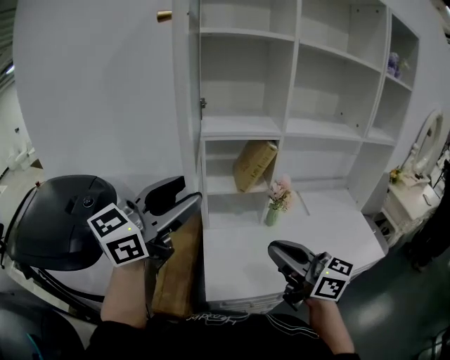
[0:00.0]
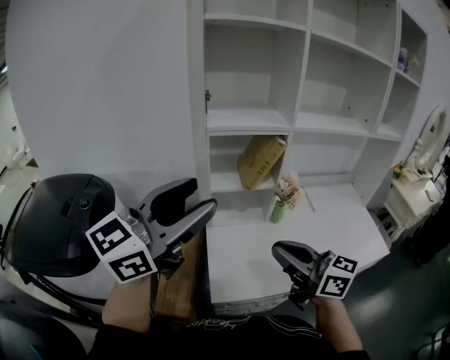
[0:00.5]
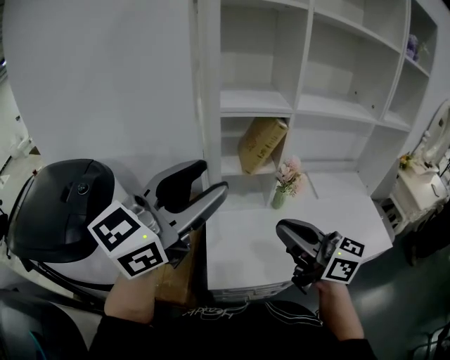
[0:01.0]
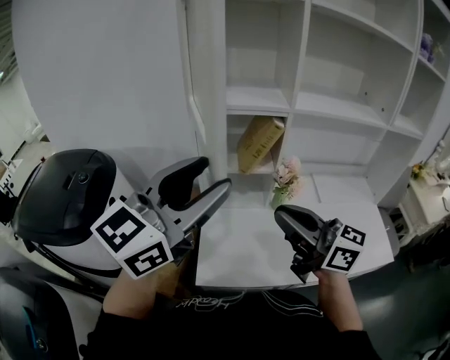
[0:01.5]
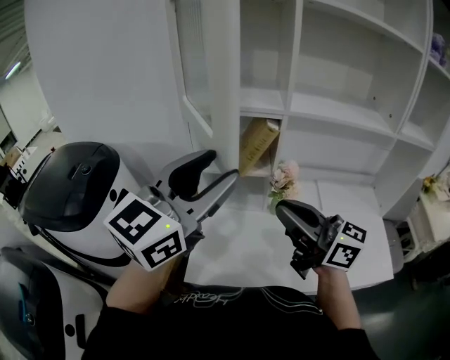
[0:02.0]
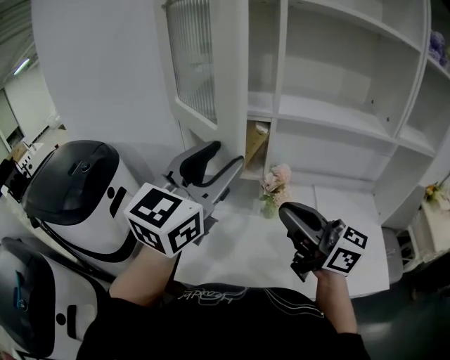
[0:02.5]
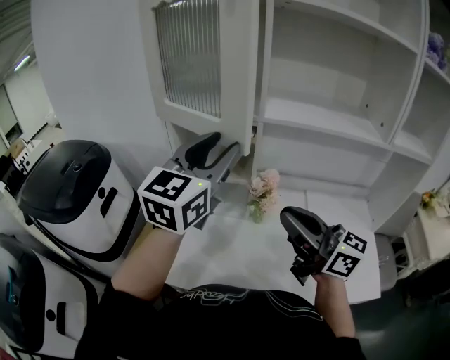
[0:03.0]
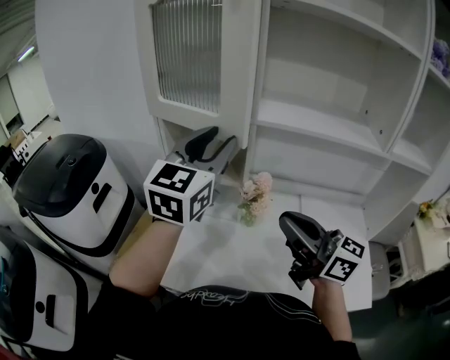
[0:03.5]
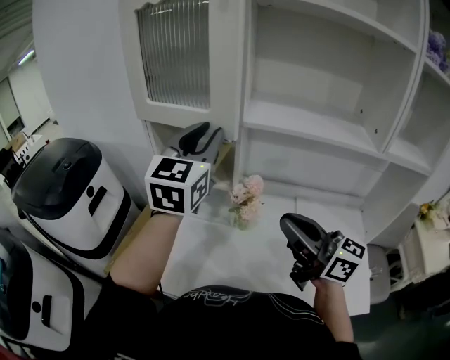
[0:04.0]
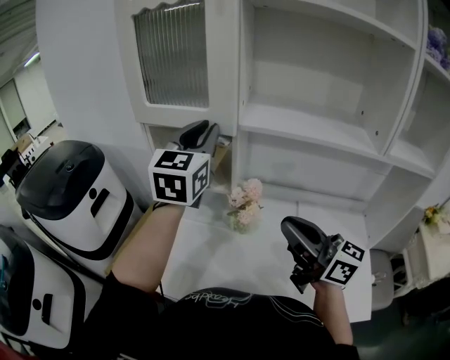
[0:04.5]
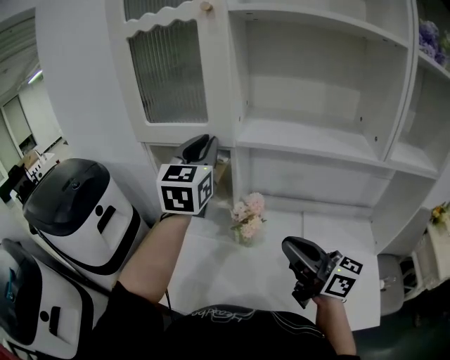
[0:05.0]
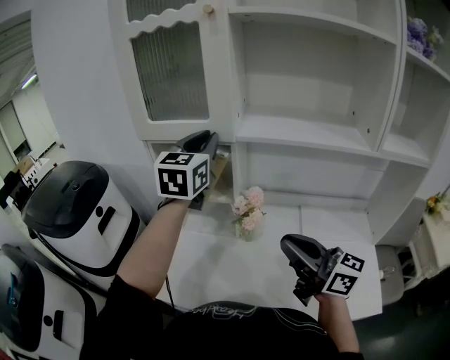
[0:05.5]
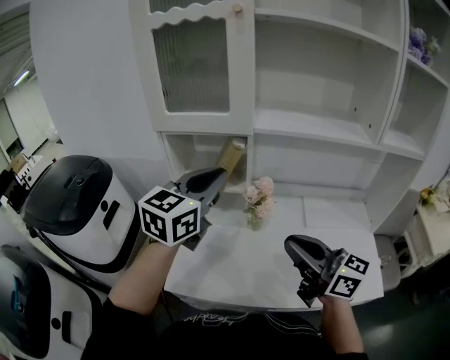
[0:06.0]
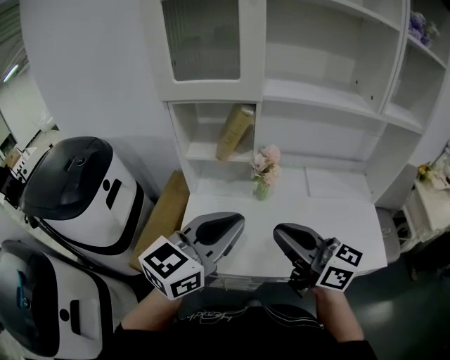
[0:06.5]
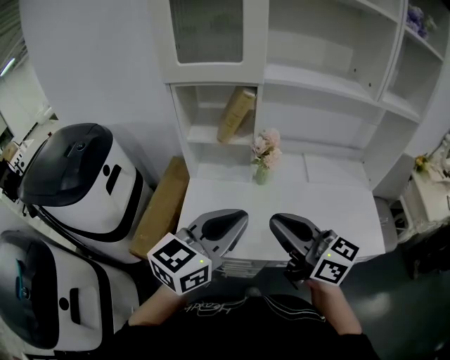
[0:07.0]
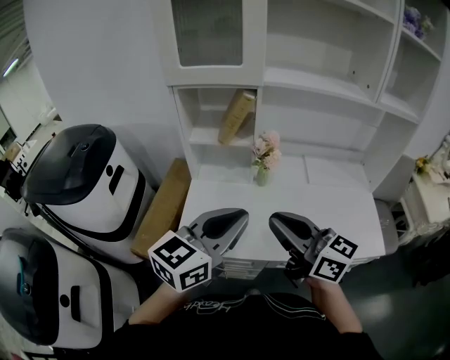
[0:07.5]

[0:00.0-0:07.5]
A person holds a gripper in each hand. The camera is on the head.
0.0 to 2.0 s: The left gripper heads to the right, covering roughly 15 cm, and rotates about 20 degrees. Meanwhile the right gripper shifts about 15 cm to the right and forward.
2.0 to 4.0 s: The right gripper moves to the right, about 20 cm. Meanwhile the left gripper is displaced to the right and forward by approximately 20 cm, changes its angle by some 30 degrees, and closes its fingers.
4.0 to 5.5 s: The grippers stay close to where they were, moving slightly.
5.5 to 7.5 s: The left gripper goes about 35 cm backward, and swivels approximately 40 degrees; the right gripper is displaced to the left and backward by roughly 20 cm.

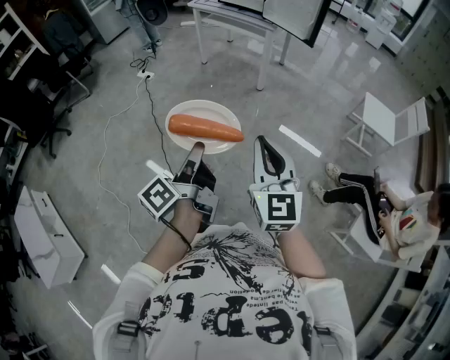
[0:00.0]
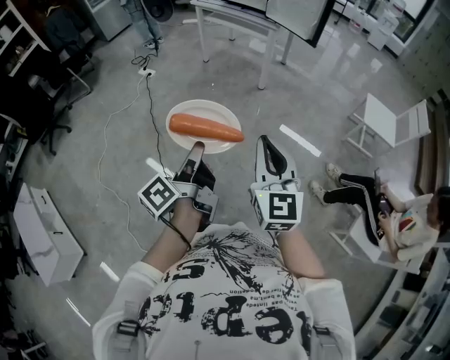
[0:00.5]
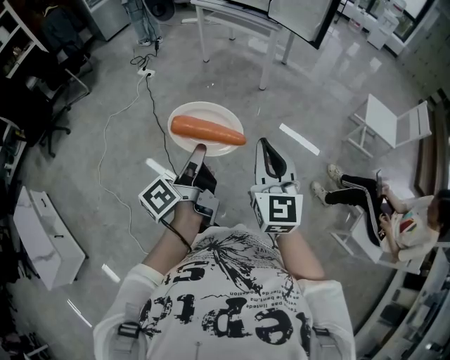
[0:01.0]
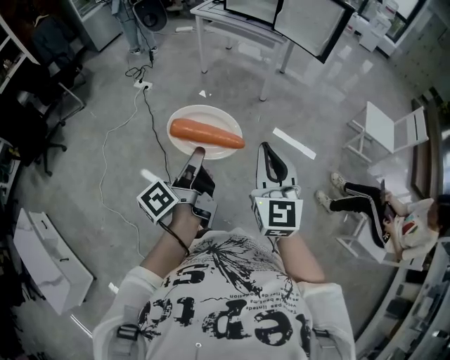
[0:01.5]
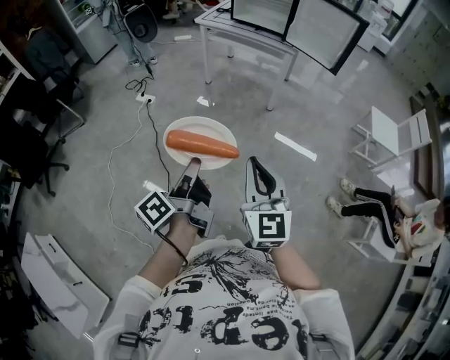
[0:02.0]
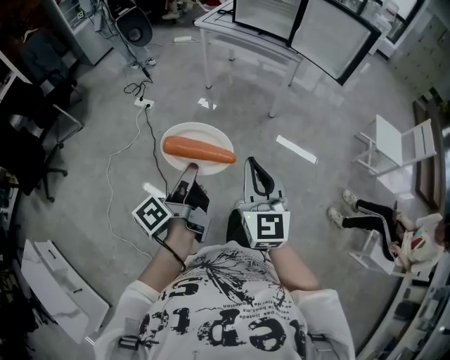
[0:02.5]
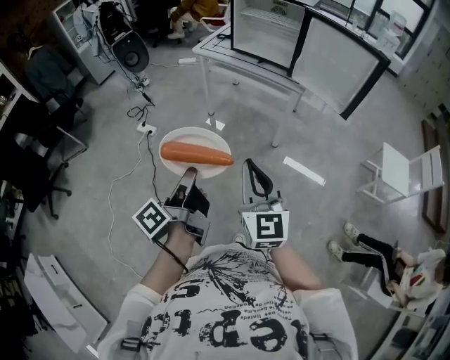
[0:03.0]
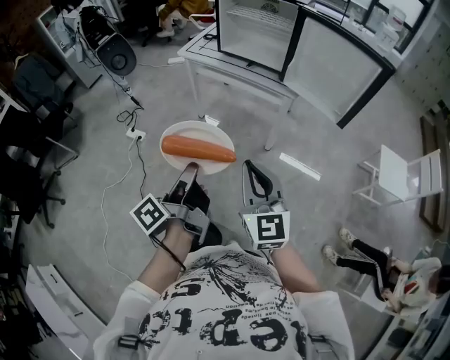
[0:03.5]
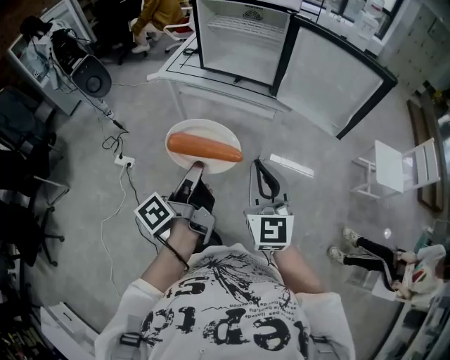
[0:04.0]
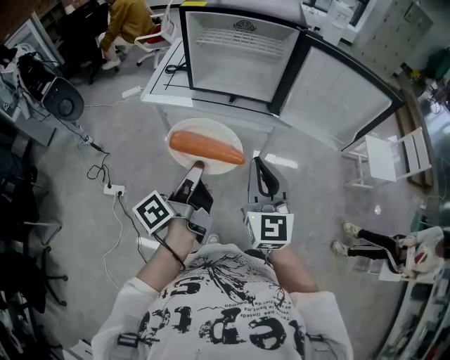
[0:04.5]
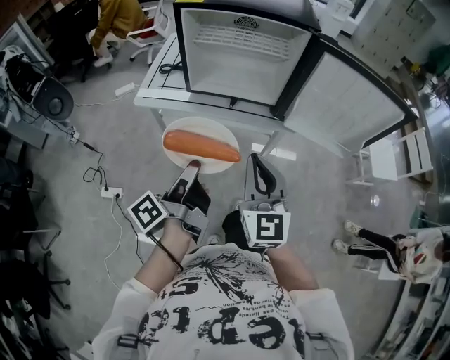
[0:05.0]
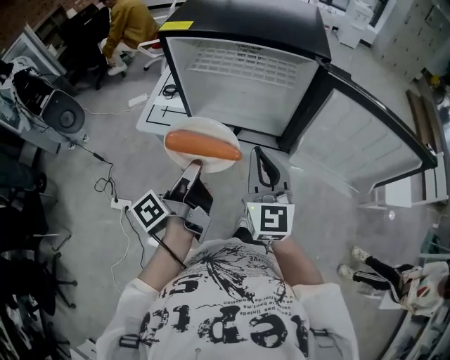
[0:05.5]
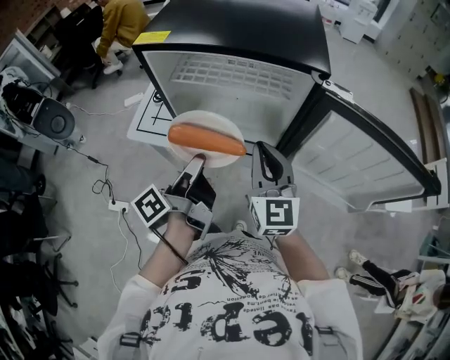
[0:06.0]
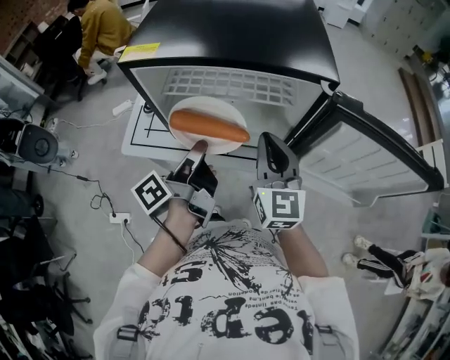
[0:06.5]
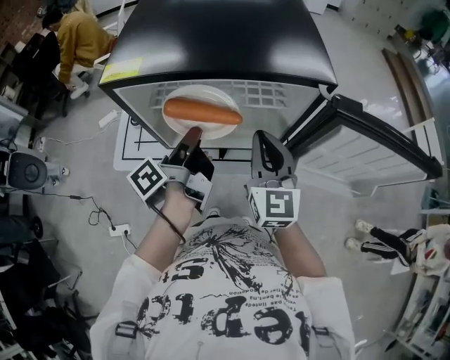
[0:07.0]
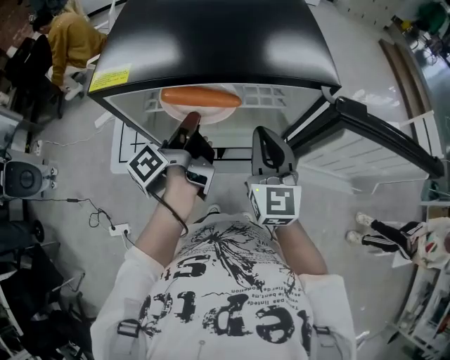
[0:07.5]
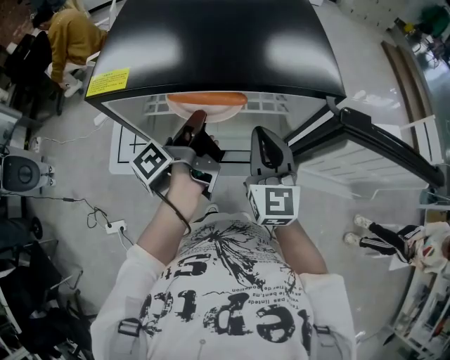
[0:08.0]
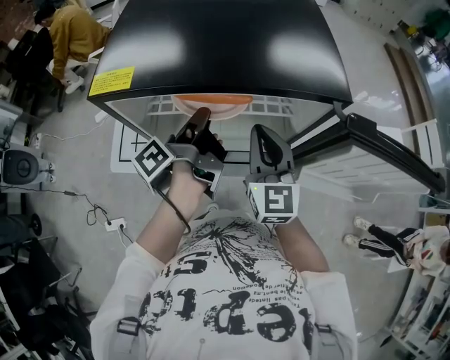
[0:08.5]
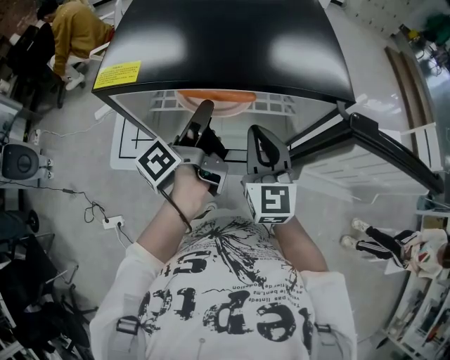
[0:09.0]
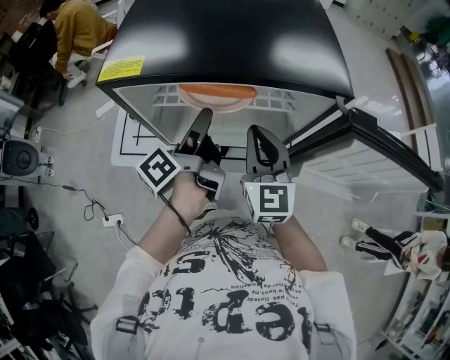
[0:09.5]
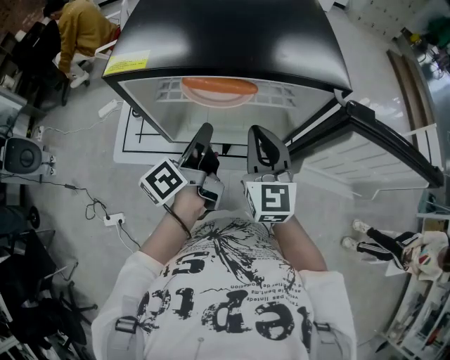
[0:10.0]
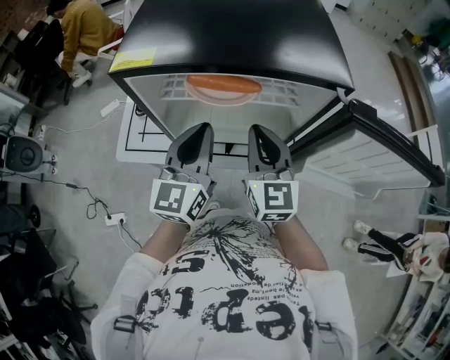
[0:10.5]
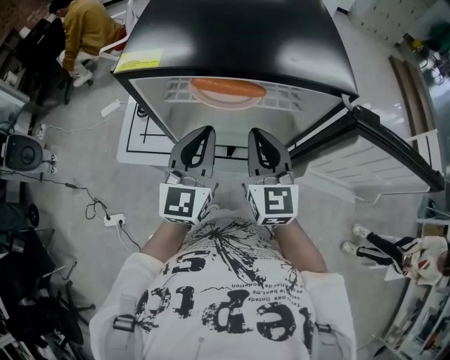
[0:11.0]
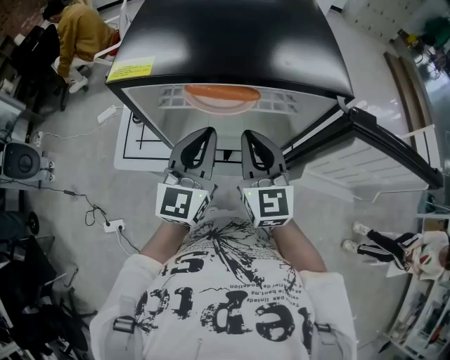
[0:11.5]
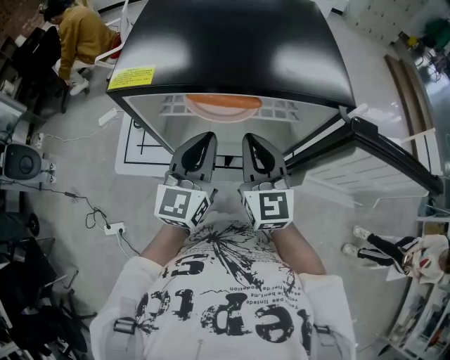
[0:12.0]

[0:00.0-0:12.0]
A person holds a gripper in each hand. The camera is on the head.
0.0 to 2.0 s: The right gripper moves some 30 cm.
2.0 to 4.0 s: The right gripper ends up roughly 50 cm from where it was.
4.0 to 6.0 s: The right gripper ends up approximately 40 cm from where it was.
6.0 to 8.0 s: The right gripper changes place by roughly 10 cm.

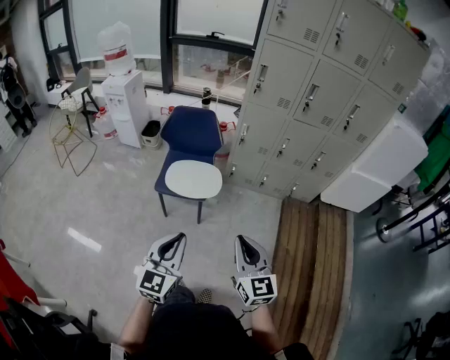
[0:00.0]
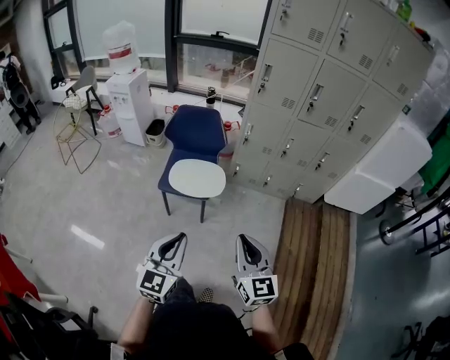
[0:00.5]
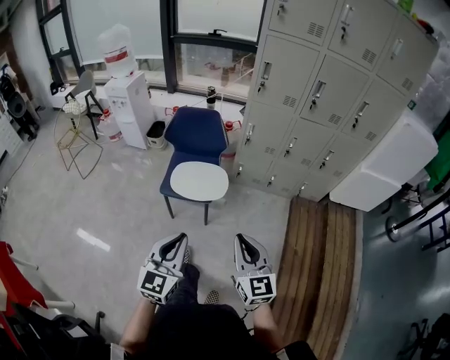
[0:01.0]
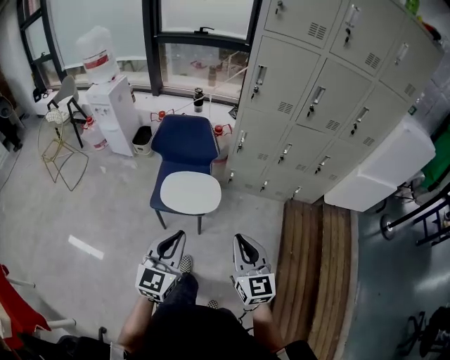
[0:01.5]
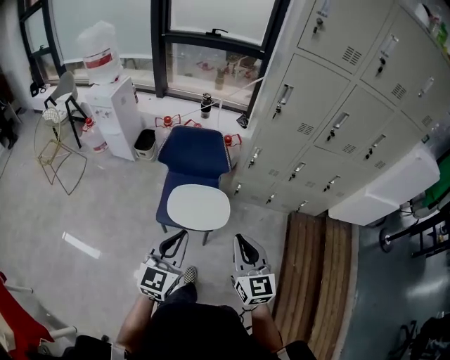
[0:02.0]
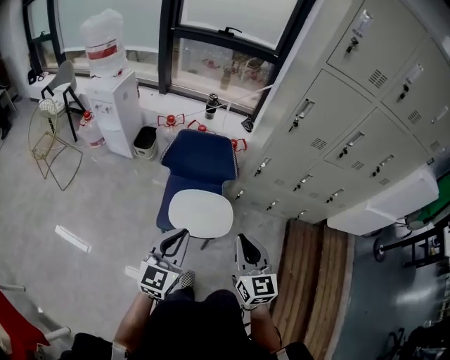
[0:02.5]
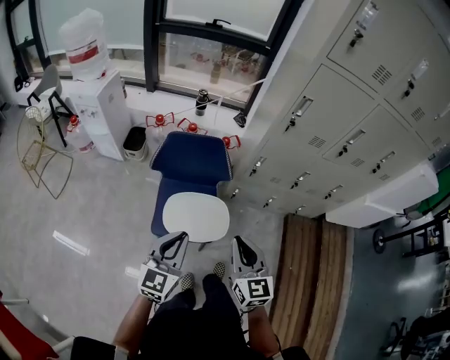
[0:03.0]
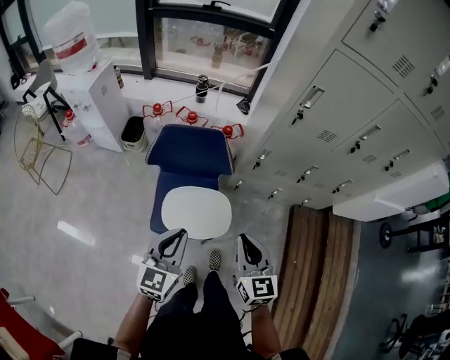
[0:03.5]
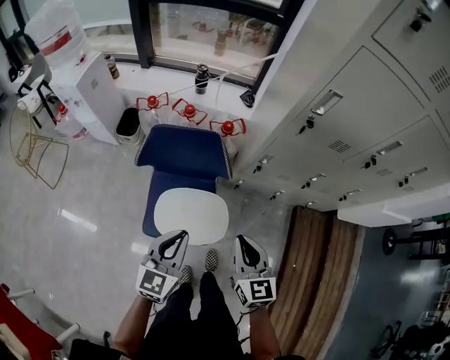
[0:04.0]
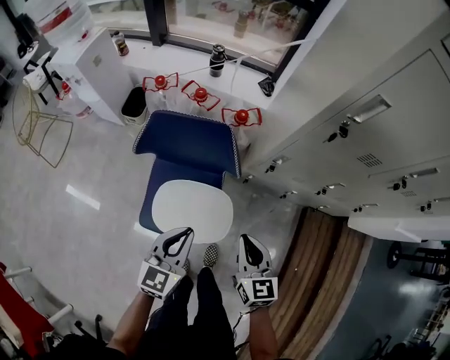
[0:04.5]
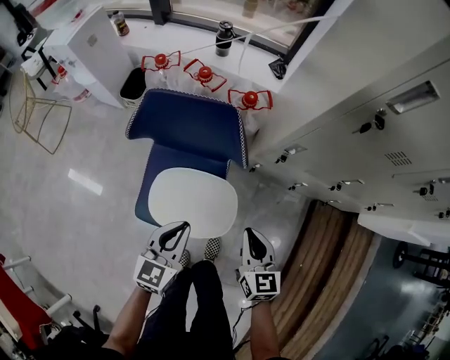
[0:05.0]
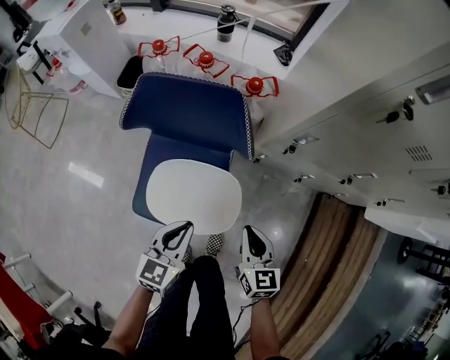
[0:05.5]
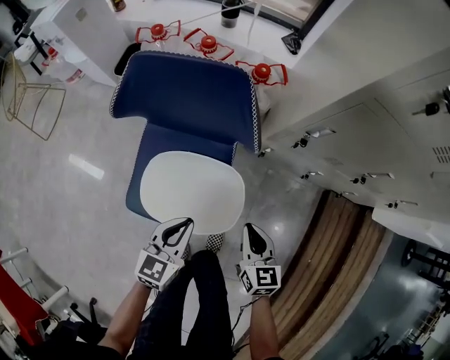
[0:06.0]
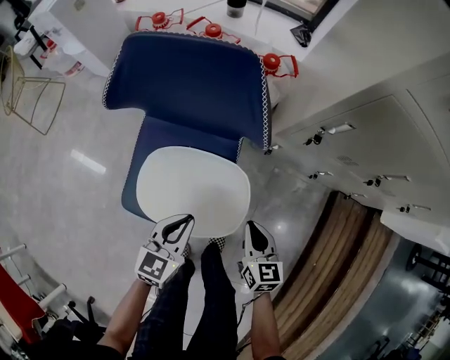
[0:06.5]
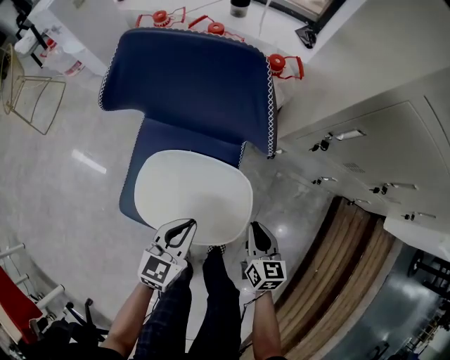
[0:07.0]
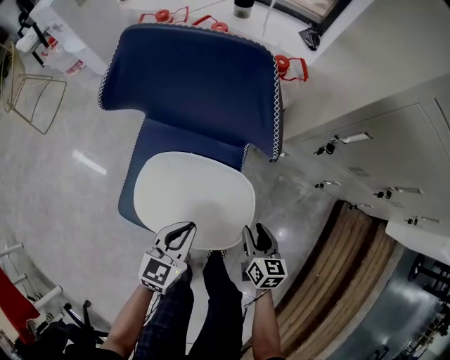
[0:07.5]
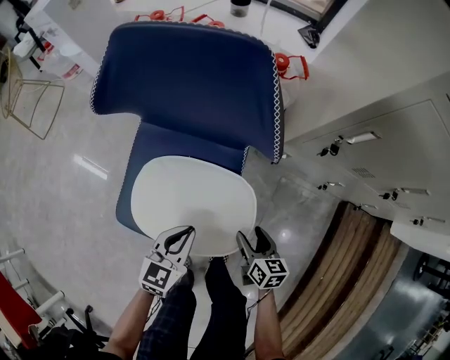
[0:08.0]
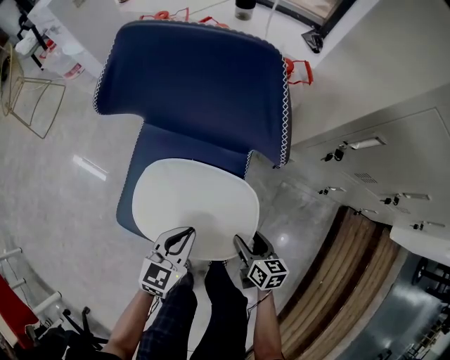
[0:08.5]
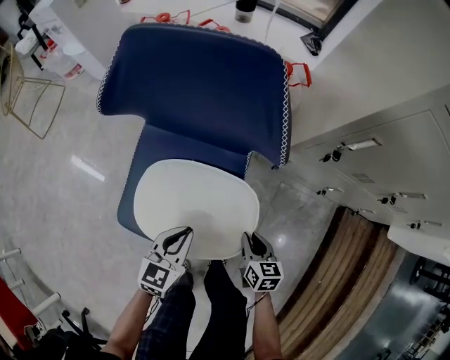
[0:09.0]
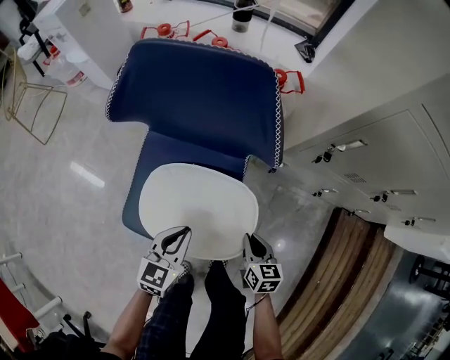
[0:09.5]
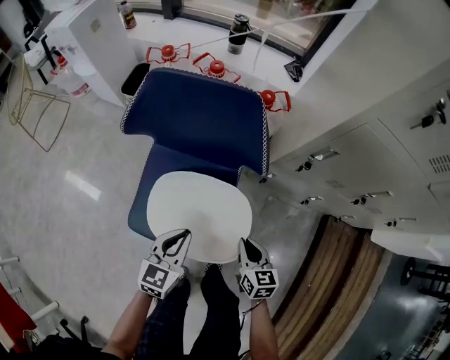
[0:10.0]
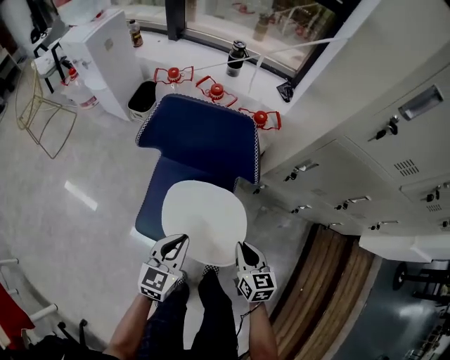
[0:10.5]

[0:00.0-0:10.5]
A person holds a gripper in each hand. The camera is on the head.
0.0 to 2.0 s: The left gripper travels forward by approximately 30 cm; the right gripper goes approximately 30 cm forward and to the left.
2.0 to 4.0 s: The grippers both shift forward and downward by approximately 30 cm.
4.0 to 6.5 s: Both grippers move downward, about 40 cm.
6.5 to 8.5 s: The right gripper shifts approximately 15 cm downward, changes its angle by roughly 20 degrees, and opens, while the left gripper heads downward, covering about 10 cm.
8.5 to 10.5 s: The two grippers go some 25 cm upward. The right gripper swivels roughly 20 degrees, and closes.
